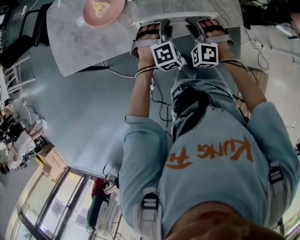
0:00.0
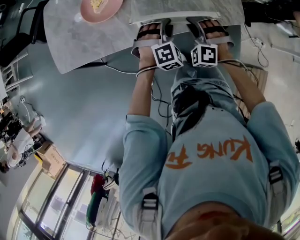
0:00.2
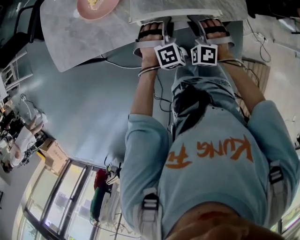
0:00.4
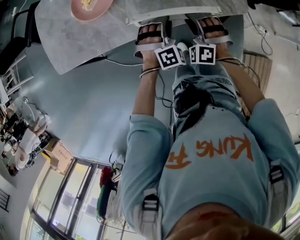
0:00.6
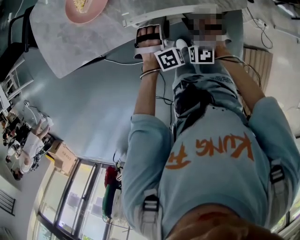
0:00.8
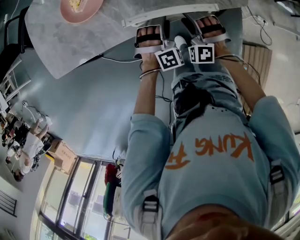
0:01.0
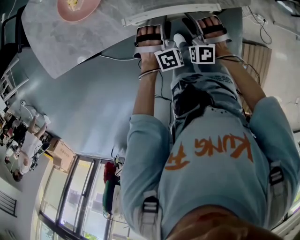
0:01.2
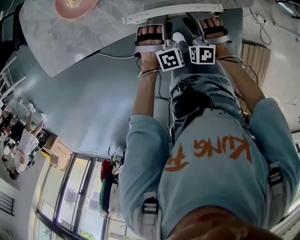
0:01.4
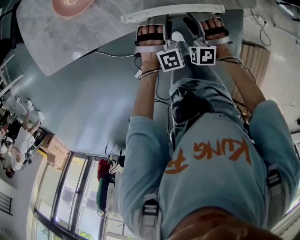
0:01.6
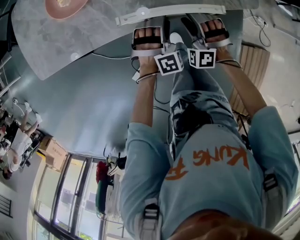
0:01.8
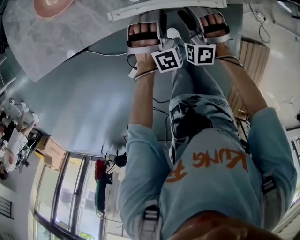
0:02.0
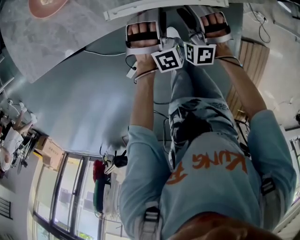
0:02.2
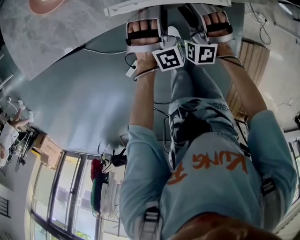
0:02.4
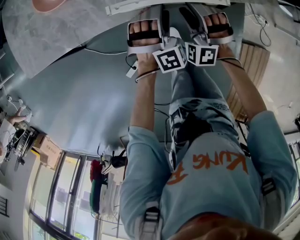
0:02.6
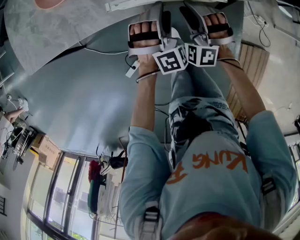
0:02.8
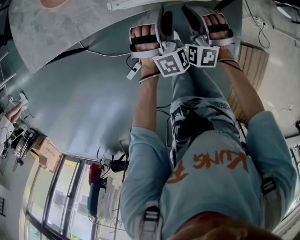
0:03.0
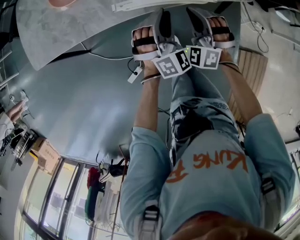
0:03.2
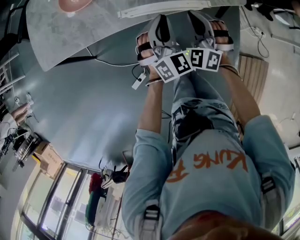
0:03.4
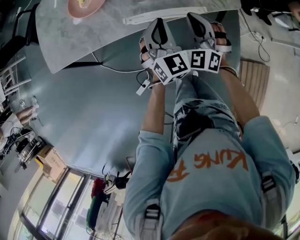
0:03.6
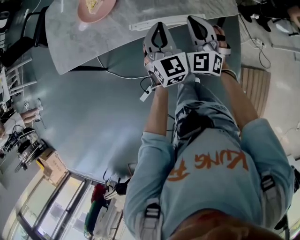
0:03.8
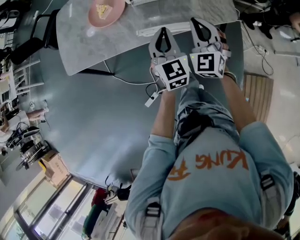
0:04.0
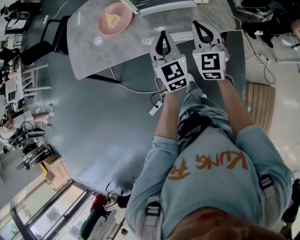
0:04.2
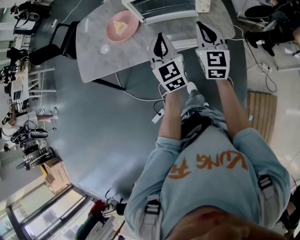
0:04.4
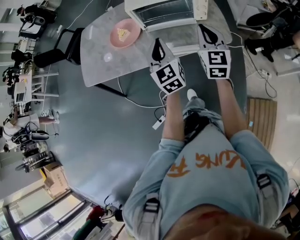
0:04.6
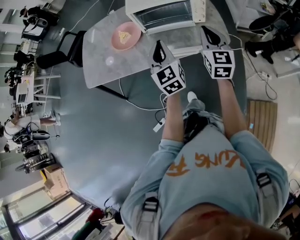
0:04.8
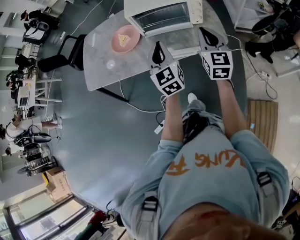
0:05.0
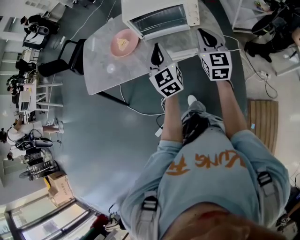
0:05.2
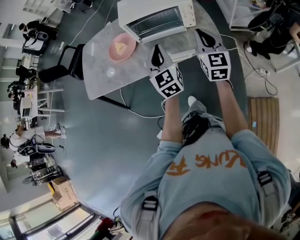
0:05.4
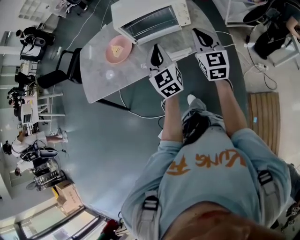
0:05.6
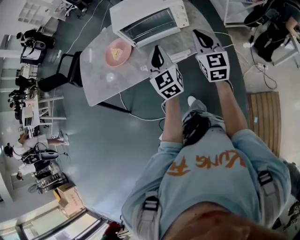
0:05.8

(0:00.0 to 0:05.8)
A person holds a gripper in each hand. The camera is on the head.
0:00.0 - 0:01.4: The two grippers go roughly 10 cm downward. The right gripper opens its fingers. Meanwhile the left gripper opens.
0:01.4 - 0:02.8: The right gripper closes up.
0:02.8 - 0:04.4: Both grippers move upward, about 30 cm. The left gripper rolls counterclockwise, seen from behind, by about 70 degrees, and closes up. The right gripper rolls clockwise, seen from behind, by about 60 degrees, and closes its fingers.
0:04.4 - 0:05.8: Both grippers move to the right, some 10 cm.

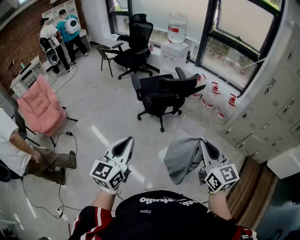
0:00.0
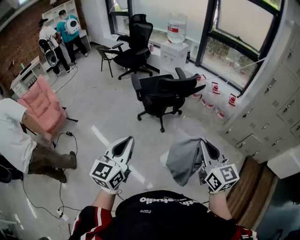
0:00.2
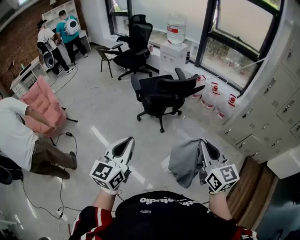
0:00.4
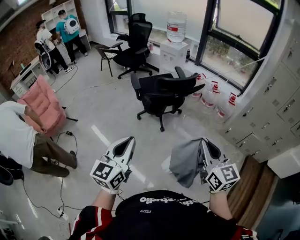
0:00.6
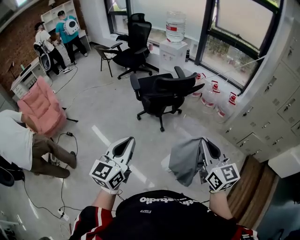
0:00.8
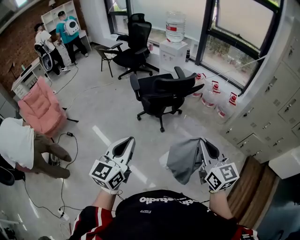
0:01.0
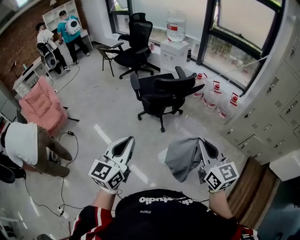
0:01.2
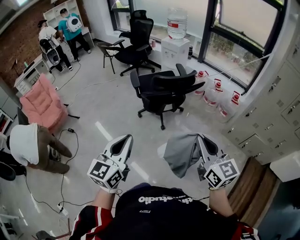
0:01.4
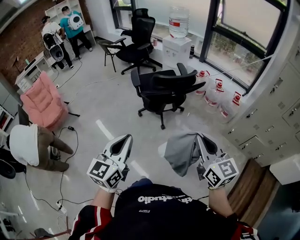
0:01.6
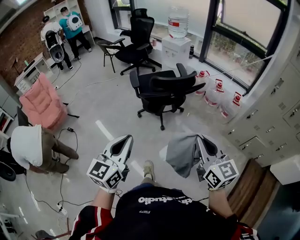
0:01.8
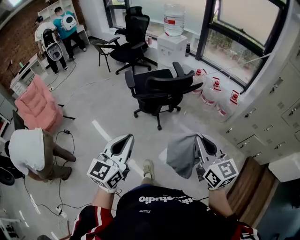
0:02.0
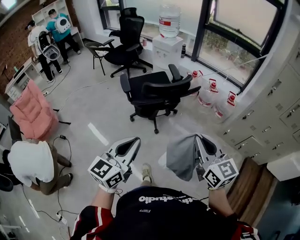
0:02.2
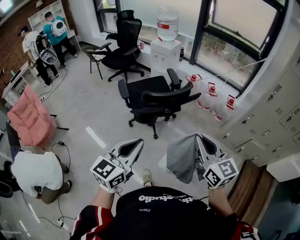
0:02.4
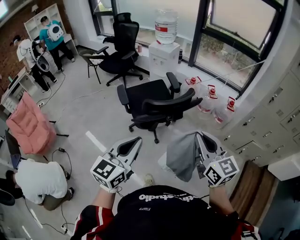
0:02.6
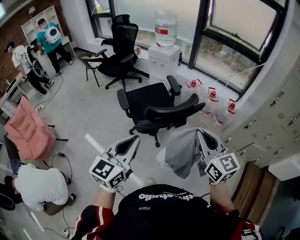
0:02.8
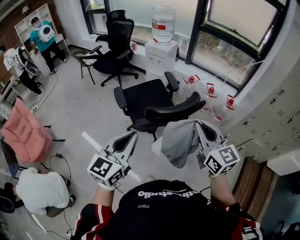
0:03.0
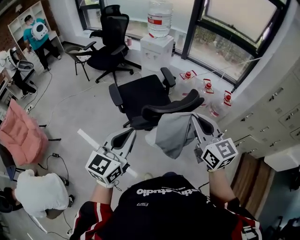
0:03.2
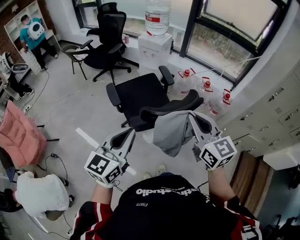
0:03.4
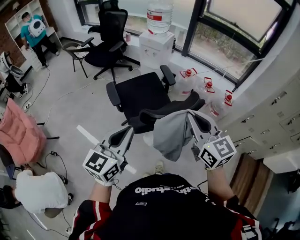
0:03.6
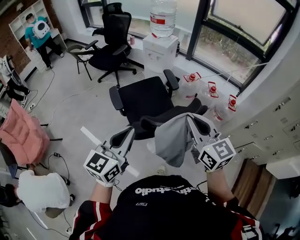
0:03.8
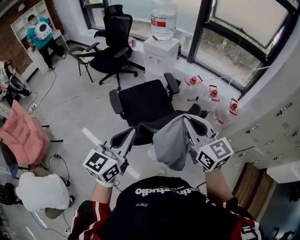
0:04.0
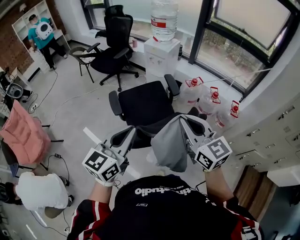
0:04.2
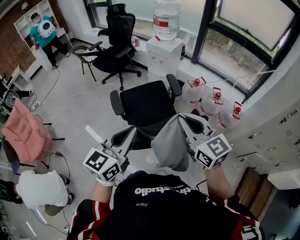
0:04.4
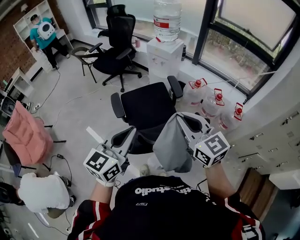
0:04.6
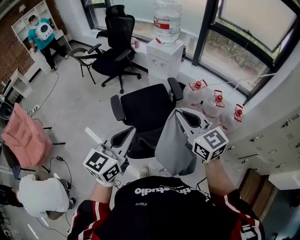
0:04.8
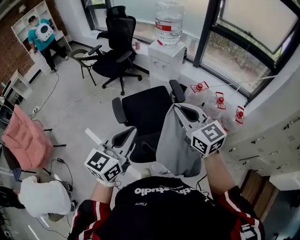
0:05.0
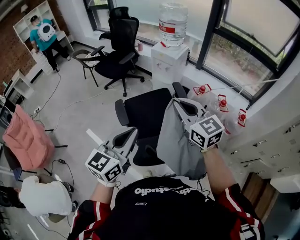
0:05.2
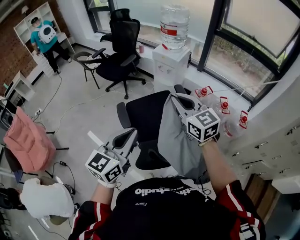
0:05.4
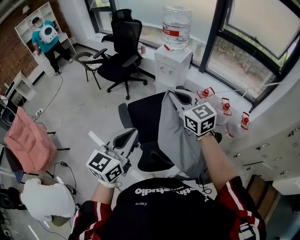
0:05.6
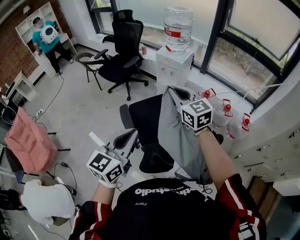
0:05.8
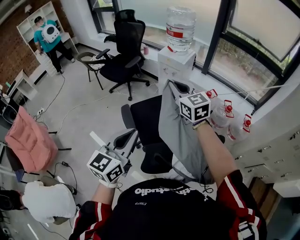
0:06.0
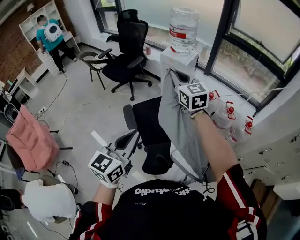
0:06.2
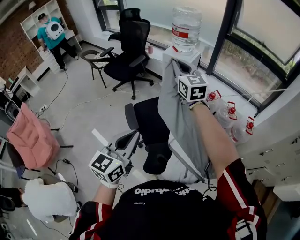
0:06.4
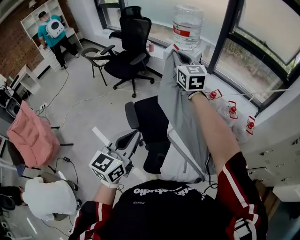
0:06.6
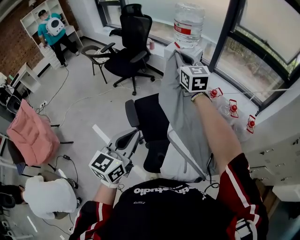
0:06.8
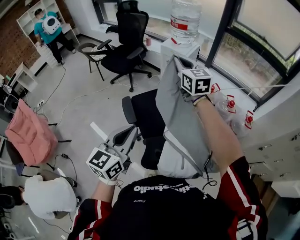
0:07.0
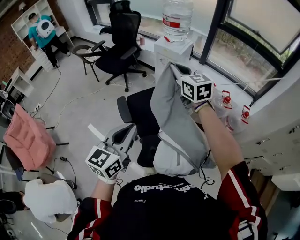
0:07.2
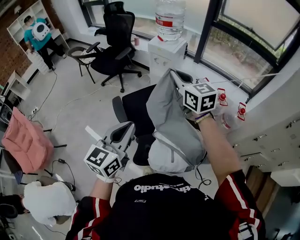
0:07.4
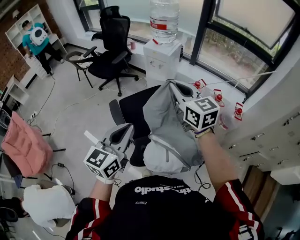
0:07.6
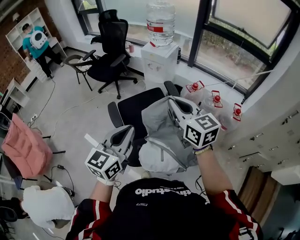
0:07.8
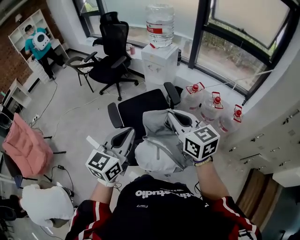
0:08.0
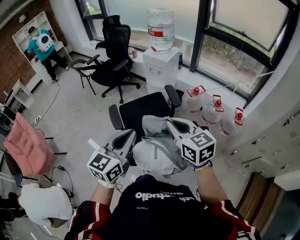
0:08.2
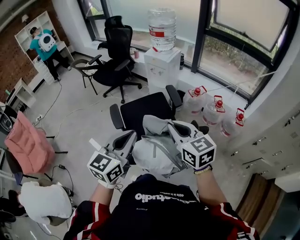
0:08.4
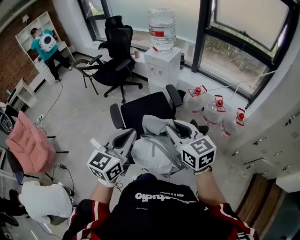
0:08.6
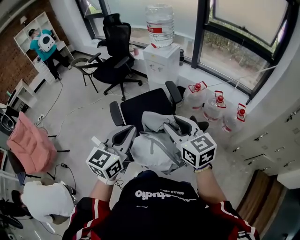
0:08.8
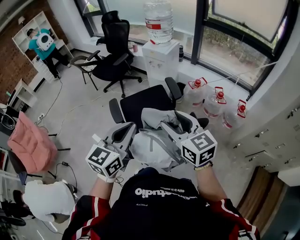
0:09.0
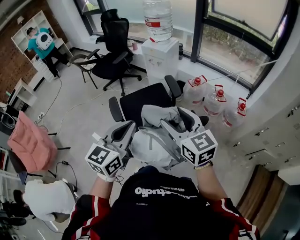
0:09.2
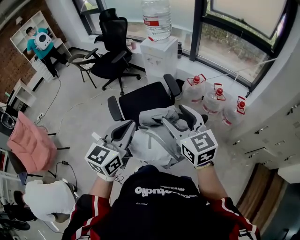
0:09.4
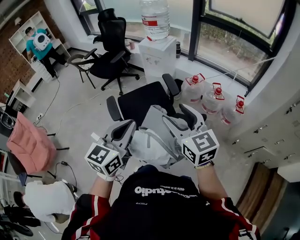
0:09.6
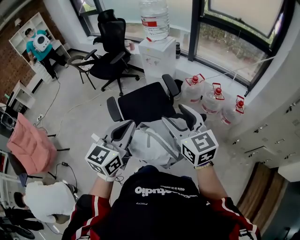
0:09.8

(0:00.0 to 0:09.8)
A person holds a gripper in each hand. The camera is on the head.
0:00.0 - 0:01.4: The two grippers go about 5 cm to the right.
0:01.4 - 0:02.8: The two grippers go some 30 cm forward.
0:02.8 - 0:04.2: Both grippers move forward, roughly 20 cm.
0:04.2 - 0:05.6: The right gripper is displaced forward and to the left by approximately 30 cm. The left gripper is displaced forward and to the left by approximately 15 cm.
0:05.6 - 0:07.0: The right gripper is displaced forward by about 15 cm.
0:07.0 - 0:08.4: The left gripper heads to the right and backward, covering about 15 cm. The right gripper is displaced backward and to the right by approximately 35 cm.
0:08.4 - 0:09.8: The right gripper opens.

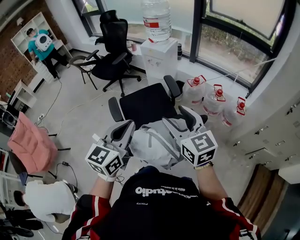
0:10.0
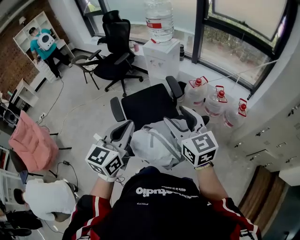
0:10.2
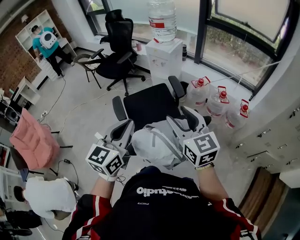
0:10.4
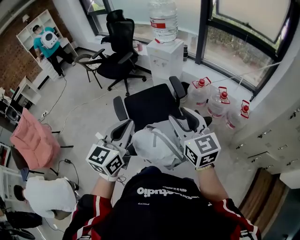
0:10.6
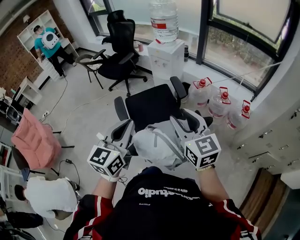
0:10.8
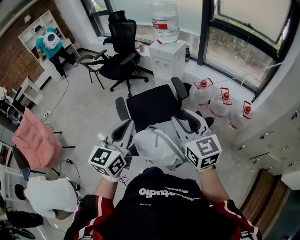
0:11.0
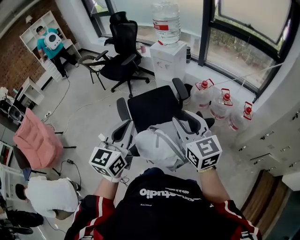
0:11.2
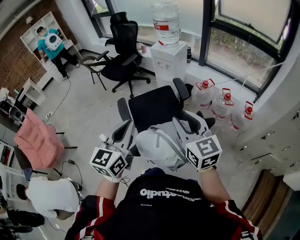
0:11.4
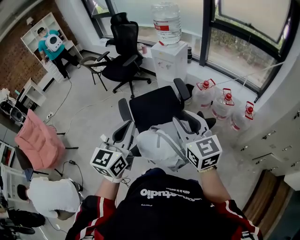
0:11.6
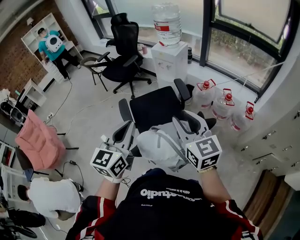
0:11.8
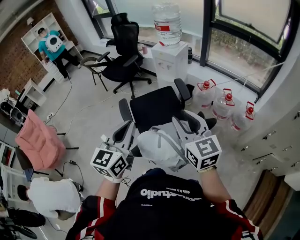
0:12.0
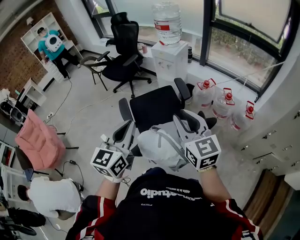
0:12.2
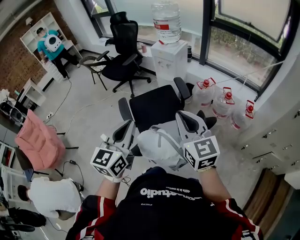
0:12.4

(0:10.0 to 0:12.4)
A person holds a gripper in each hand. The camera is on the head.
0:10.0 - 0:11.2: The right gripper closes up.
0:11.2 - 0:12.4: The right gripper closes its fingers.

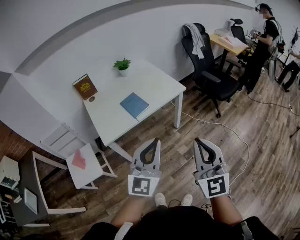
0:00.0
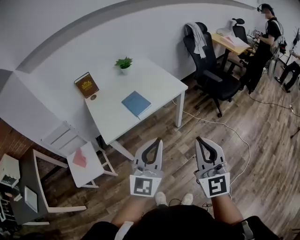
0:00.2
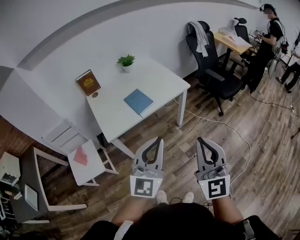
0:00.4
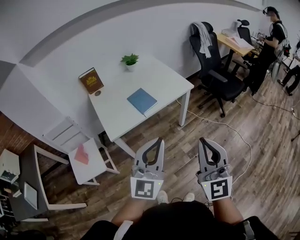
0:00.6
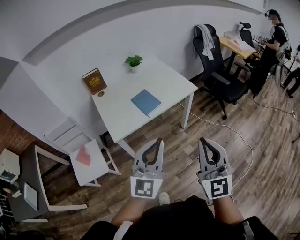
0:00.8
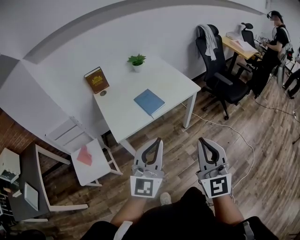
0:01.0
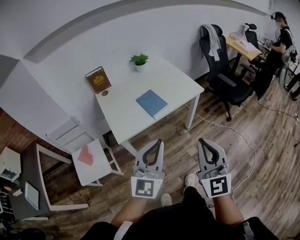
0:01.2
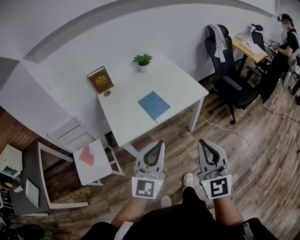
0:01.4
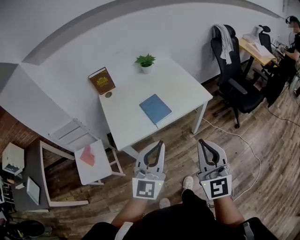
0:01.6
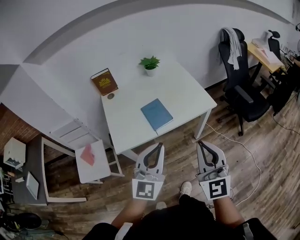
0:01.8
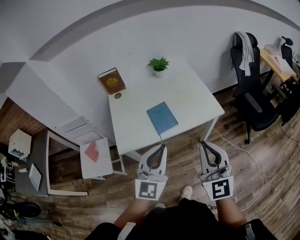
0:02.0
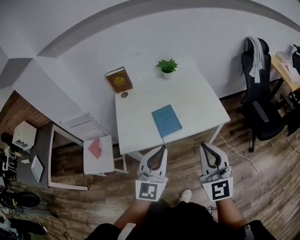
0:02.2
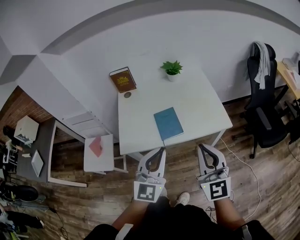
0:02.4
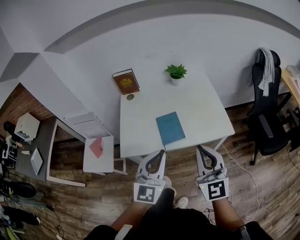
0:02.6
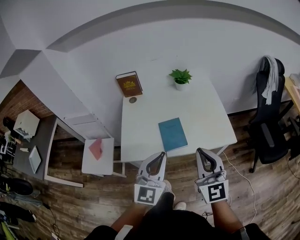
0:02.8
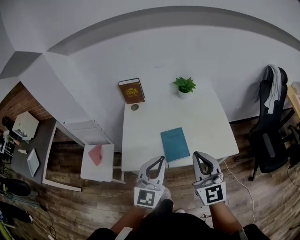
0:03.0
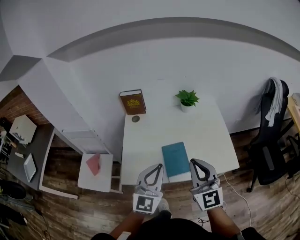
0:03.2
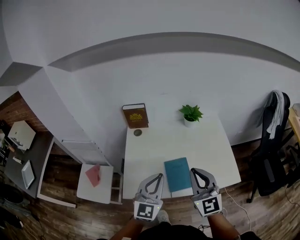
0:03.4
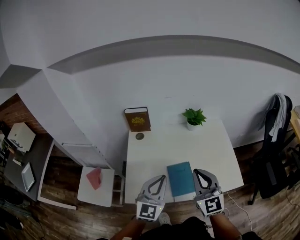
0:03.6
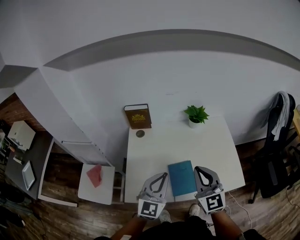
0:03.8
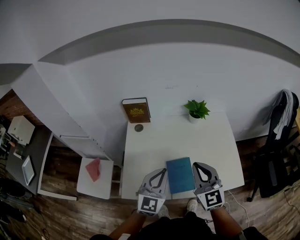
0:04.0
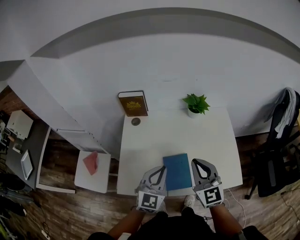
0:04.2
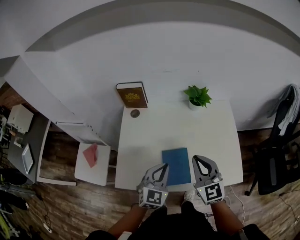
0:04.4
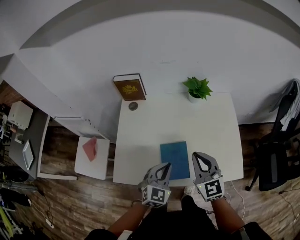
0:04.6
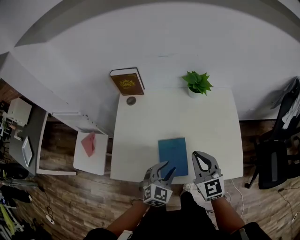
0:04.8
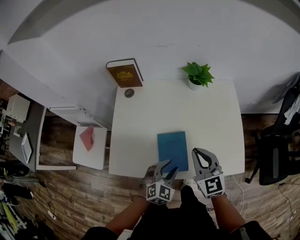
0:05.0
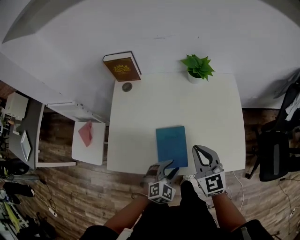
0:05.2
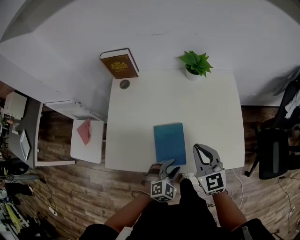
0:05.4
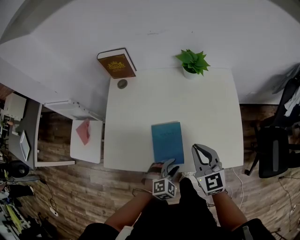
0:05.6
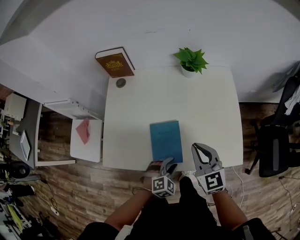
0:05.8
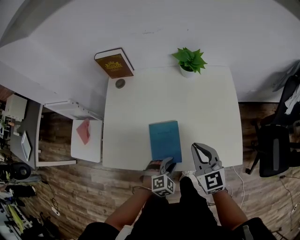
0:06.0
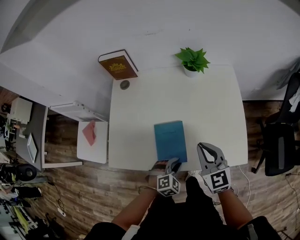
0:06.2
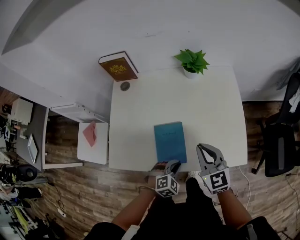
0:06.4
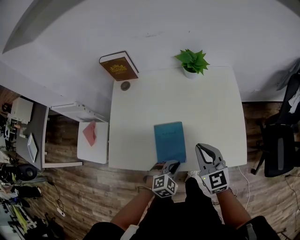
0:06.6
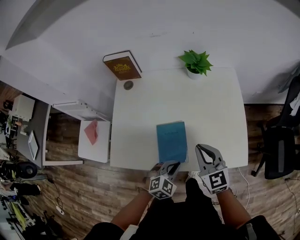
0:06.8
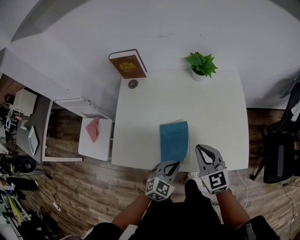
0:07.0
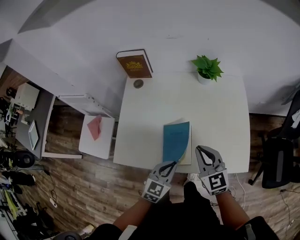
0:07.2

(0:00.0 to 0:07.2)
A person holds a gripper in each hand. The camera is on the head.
0:00.0 - 0:01.4: Both grippers travel together to the left and forward, roughly 10 cm.
0:01.4 - 0:02.8: Both grippers travel together forward, approximately 25 cm. The right gripper rotates approximately 30 degrees; the left gripper changes its angle by about 20 degrees.
0:02.8 - 0:04.4: The left gripper is displaced forward and downward by about 25 cm, and changes its angle by some 20 degrees; the right gripper is displaced forward by approximately 25 cm, and changes its angle by some 20 degrees.
0:04.4 - 0:05.8: The right gripper moves downward and to the right, roughly 10 cm; the left gripper shifts roughly 25 cm downward, to the right and backward, tips its fingers downward by about 30 degrees, and opens up.
0:05.8 - 0:07.2: The left gripper travels upward and to the left by roughly 10 cm, turns by roughly 40 degrees, and closes its fingers.
